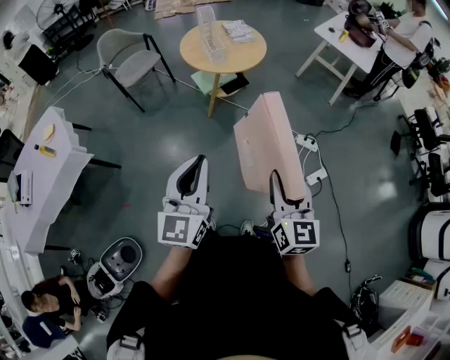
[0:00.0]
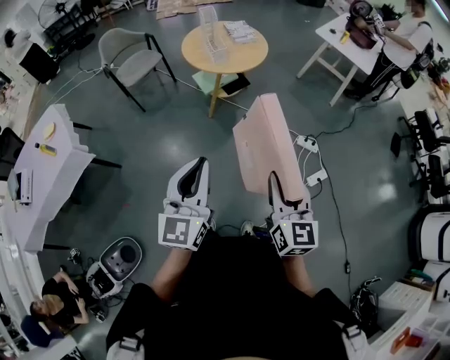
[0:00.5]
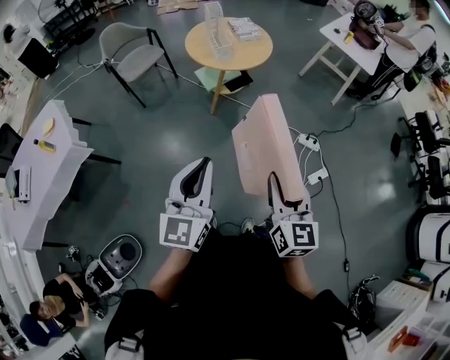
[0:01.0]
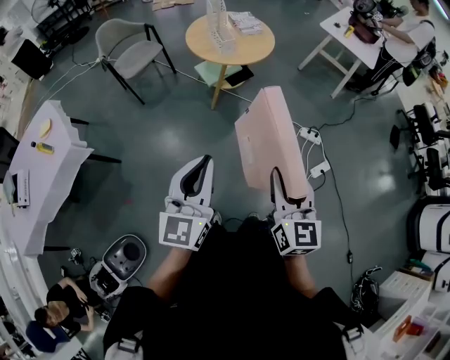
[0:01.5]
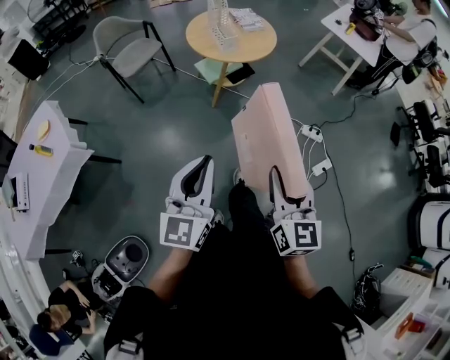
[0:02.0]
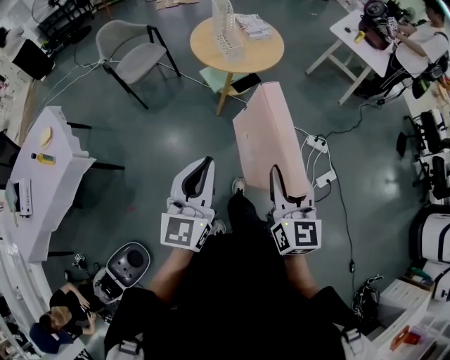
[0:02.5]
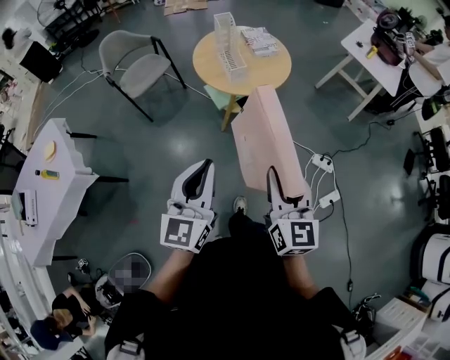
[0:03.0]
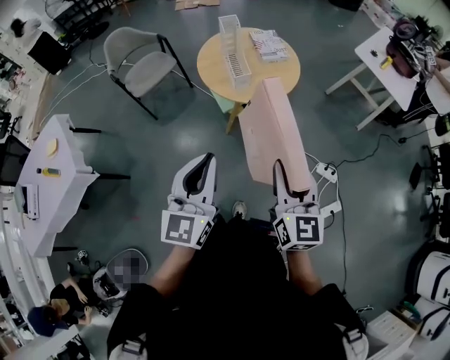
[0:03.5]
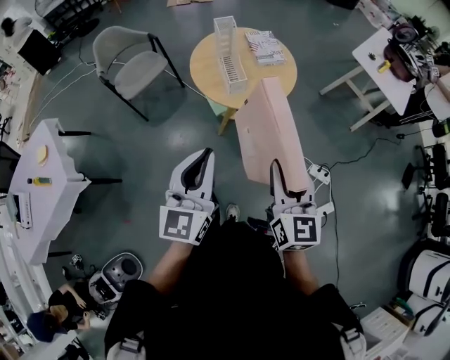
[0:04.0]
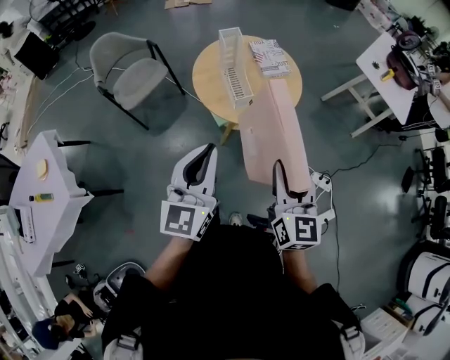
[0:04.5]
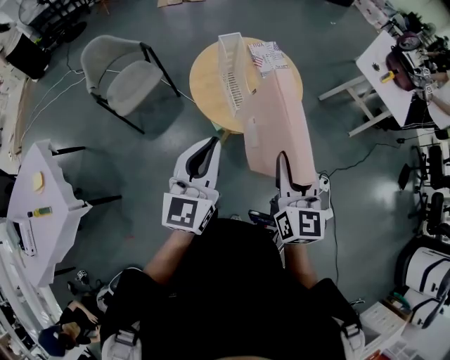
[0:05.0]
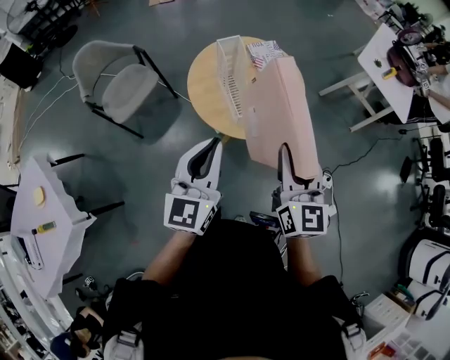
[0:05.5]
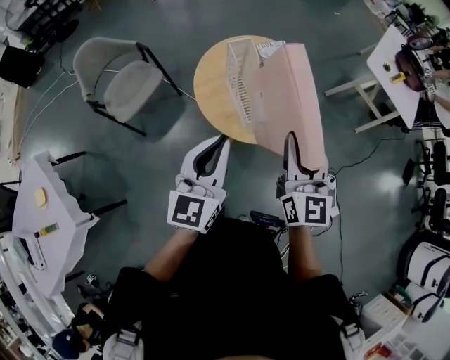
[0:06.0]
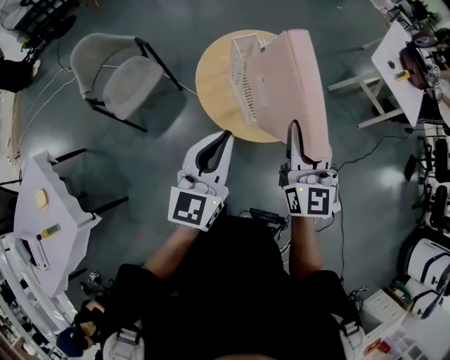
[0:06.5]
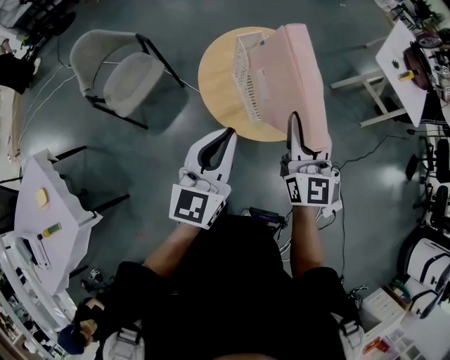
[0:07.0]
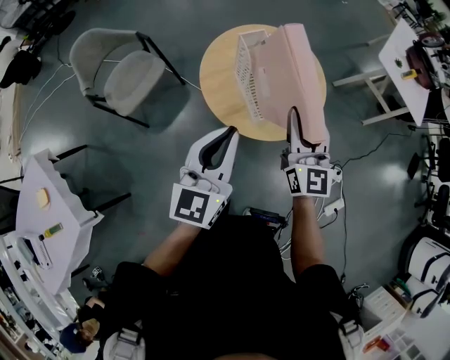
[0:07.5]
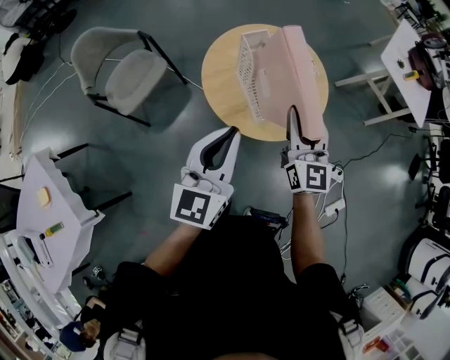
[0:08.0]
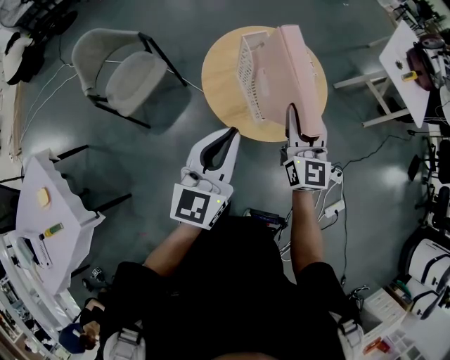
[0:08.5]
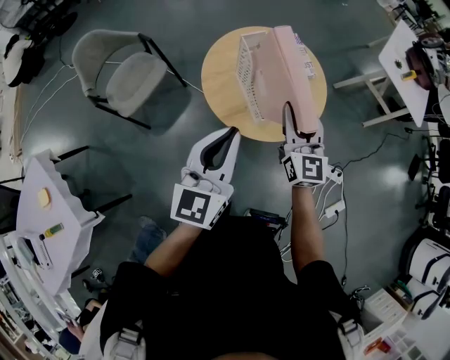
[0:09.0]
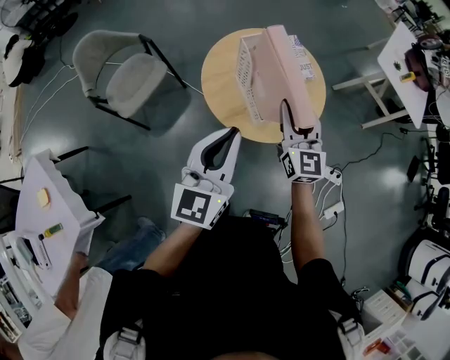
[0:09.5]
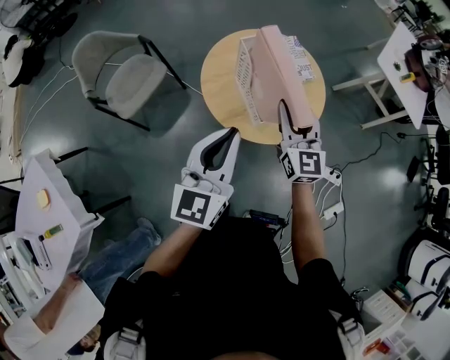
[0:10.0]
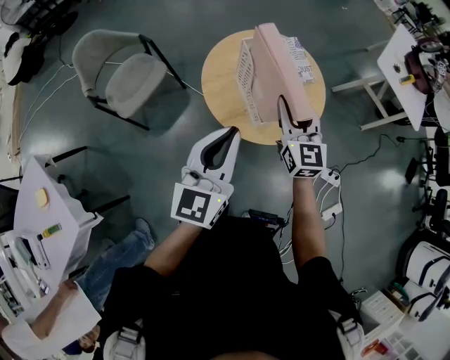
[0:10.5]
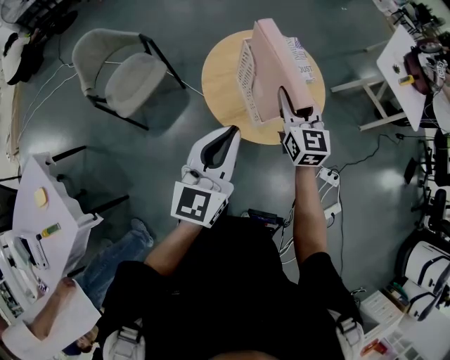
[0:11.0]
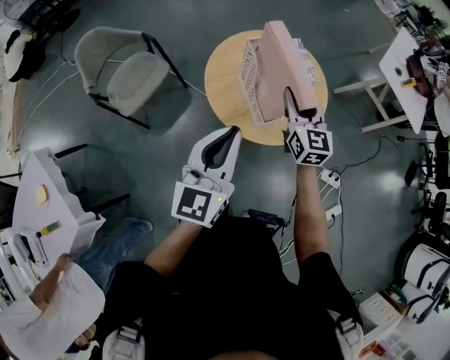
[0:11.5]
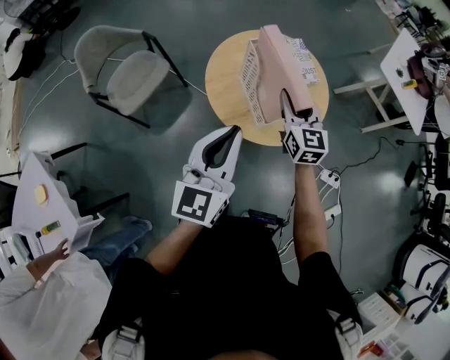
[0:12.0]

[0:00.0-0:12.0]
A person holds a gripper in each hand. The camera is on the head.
0:00.0 to 0:02.0: The two grippers go roughly 10 cm to the left.
0:02.0 to 0:04.0: Both grippers move forward, about 40 cm.
0:04.0 to 0:06.0: The grippers both shift forward by roughly 30 cm.
0:06.0 to 0:08.0: The left gripper ends up roughly 5 cm from where it was, while the right gripper moves forward and downward, roughly 10 cm.
0:08.0 to 0:10.0: The grippers stay close to where they were, moving slightly.
0:10.0 to 0:12.0: The right gripper moves forward, roughly 5 cm.

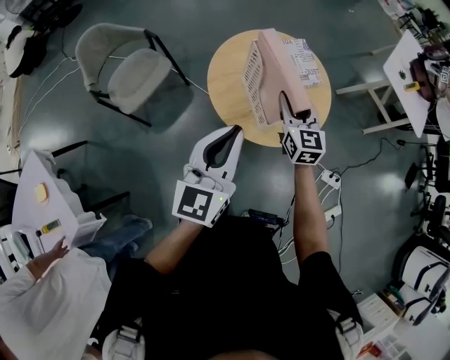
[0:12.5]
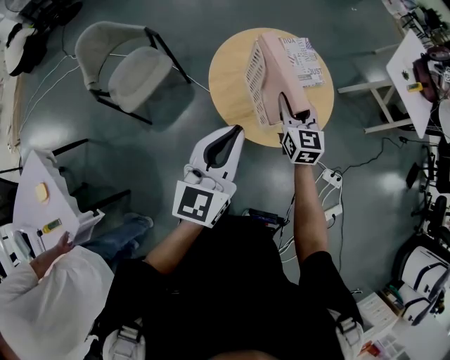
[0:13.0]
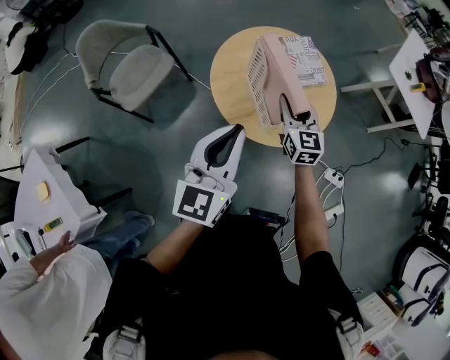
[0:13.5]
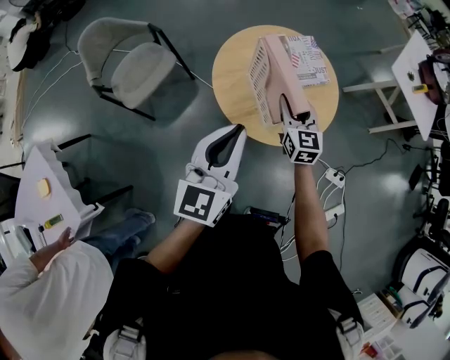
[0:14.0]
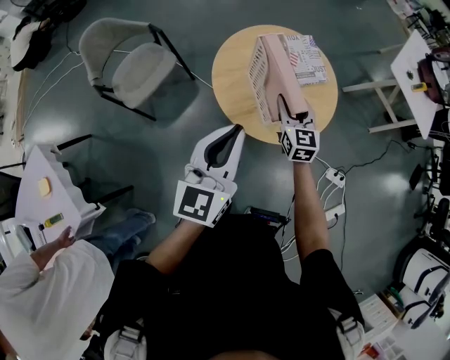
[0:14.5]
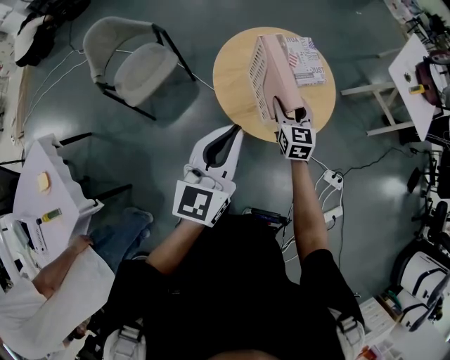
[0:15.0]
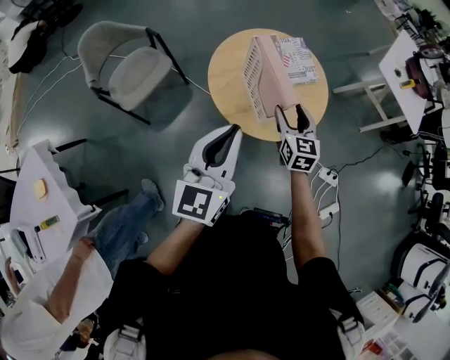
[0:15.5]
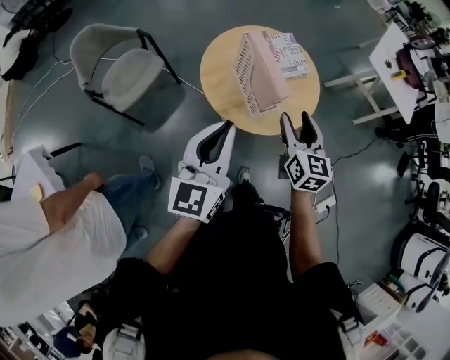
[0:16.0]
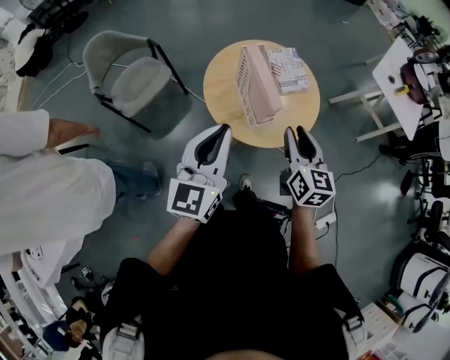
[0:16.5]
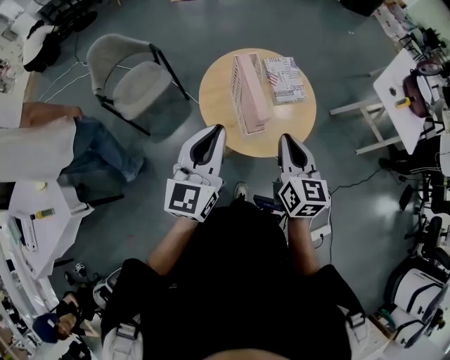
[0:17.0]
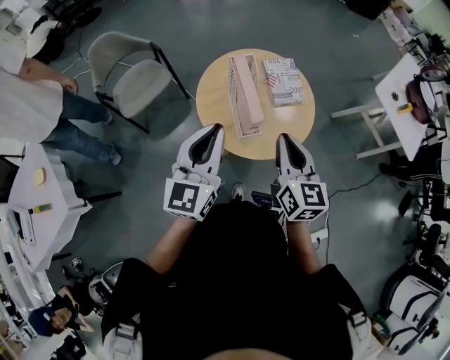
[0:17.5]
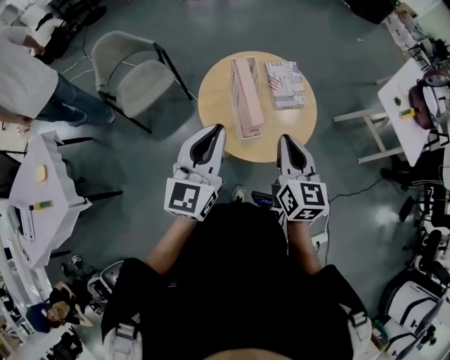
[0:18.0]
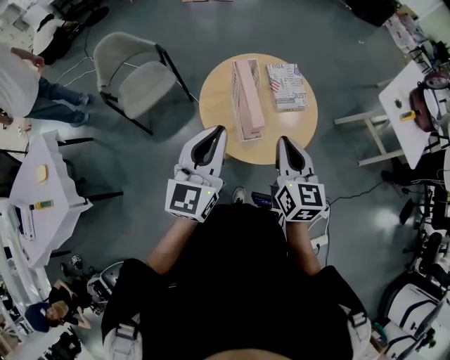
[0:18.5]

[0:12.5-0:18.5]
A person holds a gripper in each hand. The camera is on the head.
0:12.5 to 0:14.5: The right gripper travels downward by some 5 cm.
0:14.5 to 0:16.5: The right gripper travels upward, backward and to the right by about 20 cm, and opens and closes again. The left gripper changes place by roughly 5 cm.
0:16.5 to 0:18.5: The left gripper heads to the right, covering roughly 5 cm; the right gripper closes.

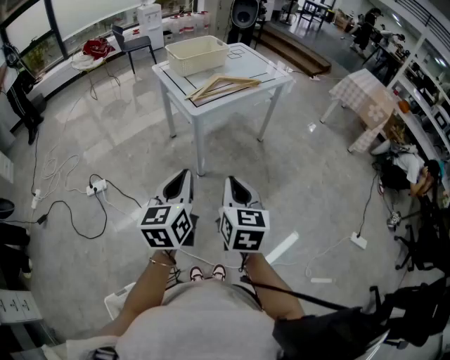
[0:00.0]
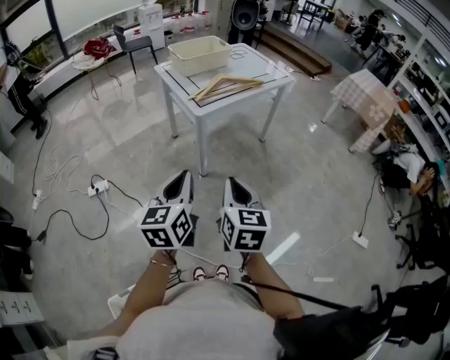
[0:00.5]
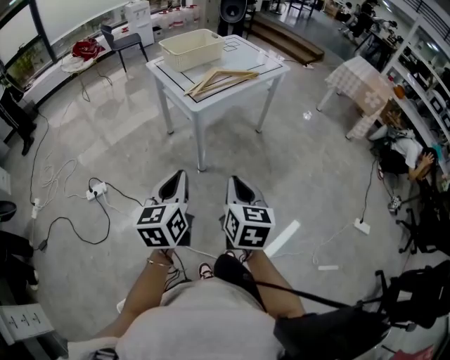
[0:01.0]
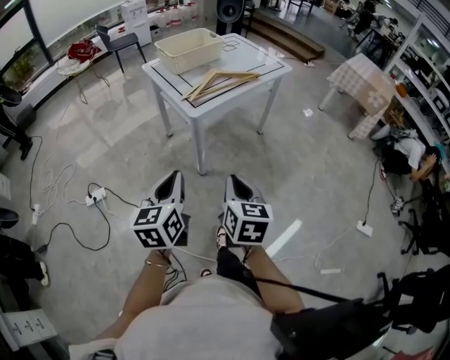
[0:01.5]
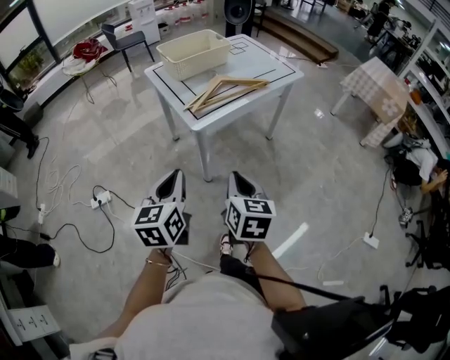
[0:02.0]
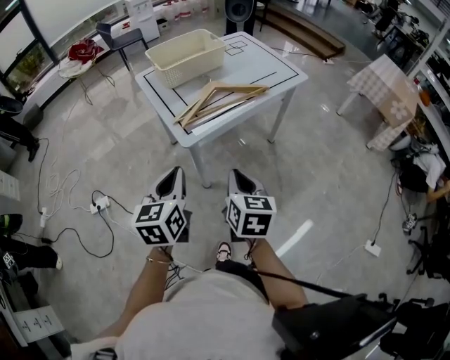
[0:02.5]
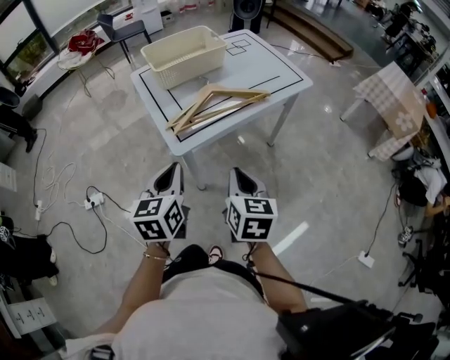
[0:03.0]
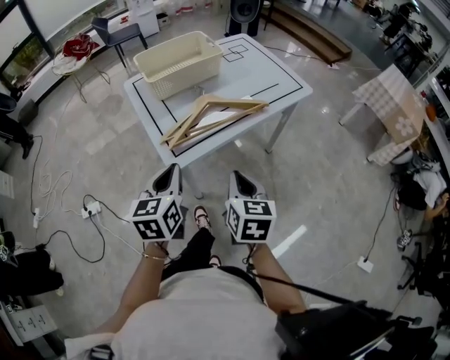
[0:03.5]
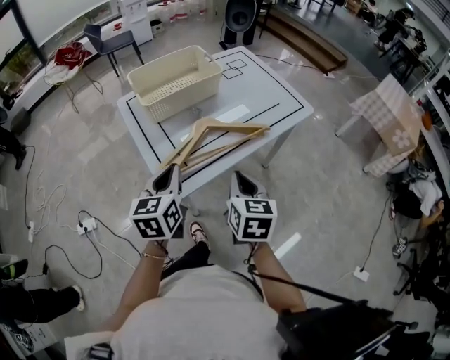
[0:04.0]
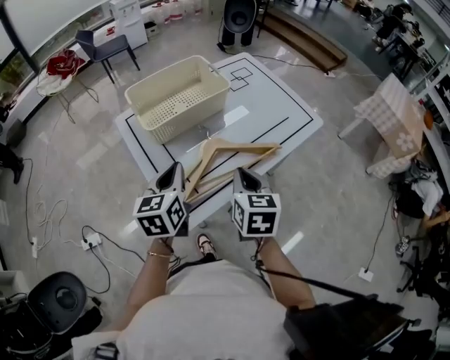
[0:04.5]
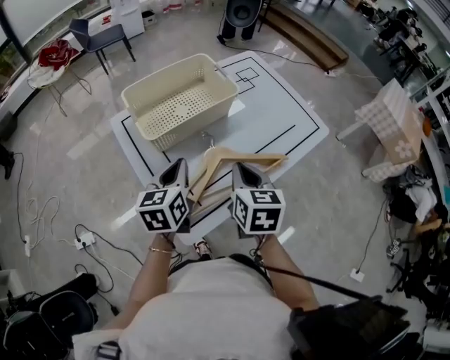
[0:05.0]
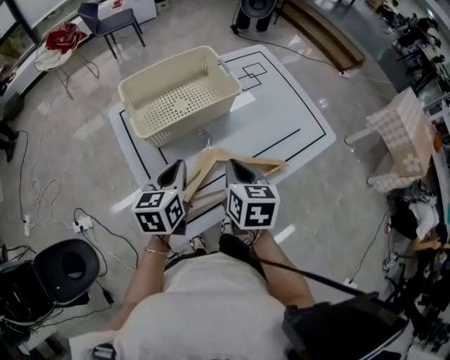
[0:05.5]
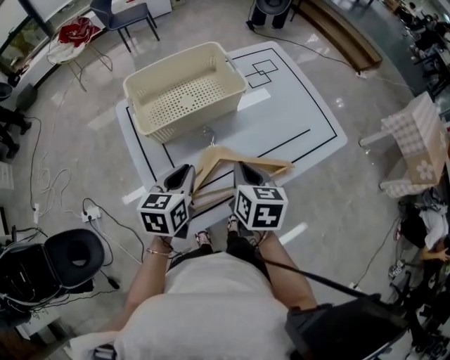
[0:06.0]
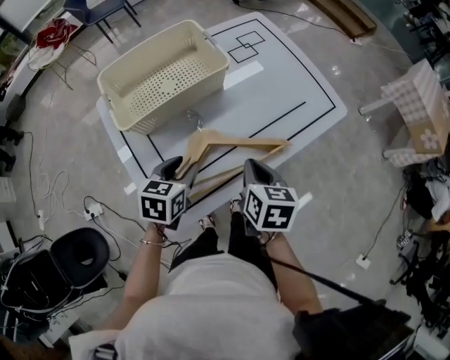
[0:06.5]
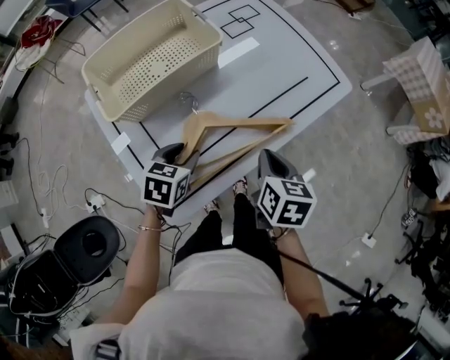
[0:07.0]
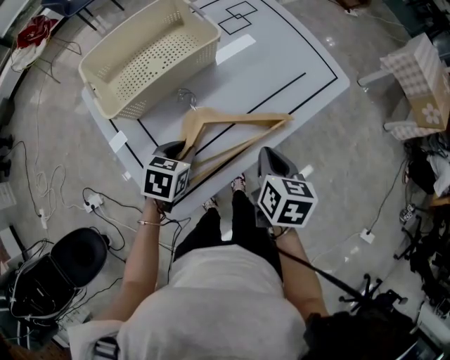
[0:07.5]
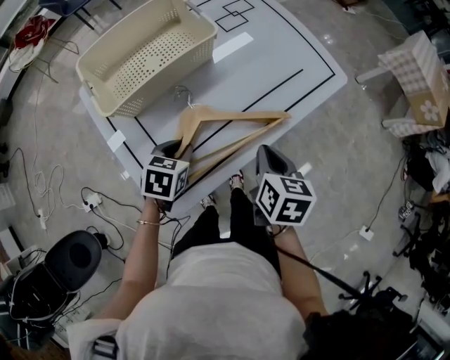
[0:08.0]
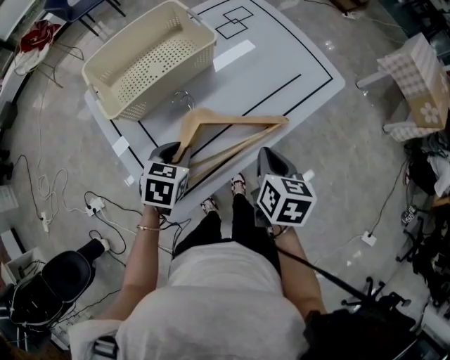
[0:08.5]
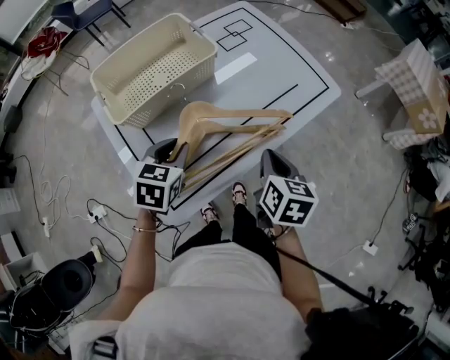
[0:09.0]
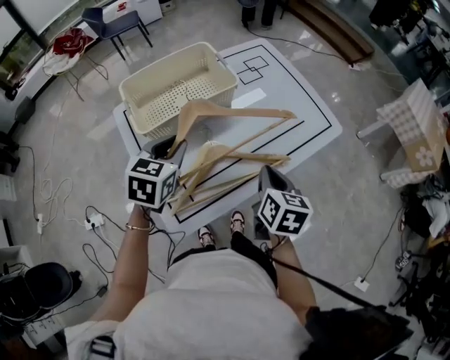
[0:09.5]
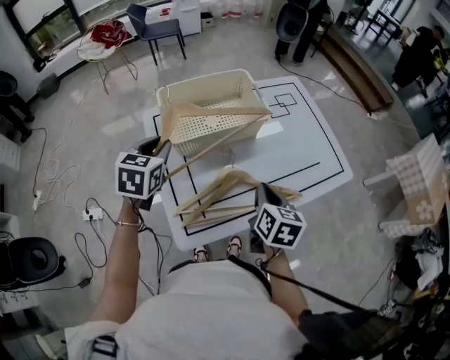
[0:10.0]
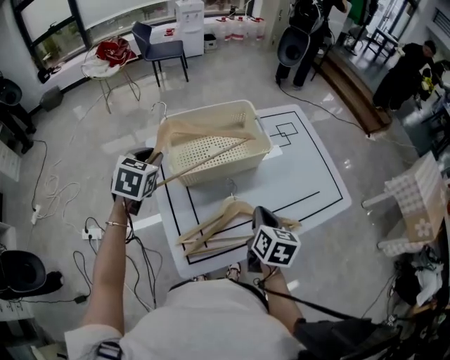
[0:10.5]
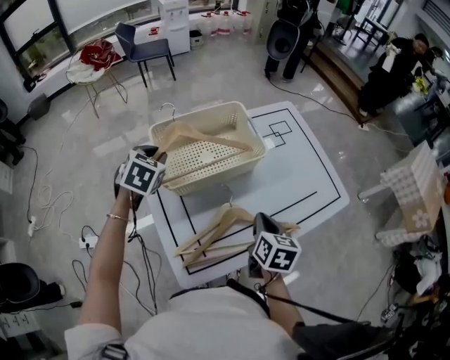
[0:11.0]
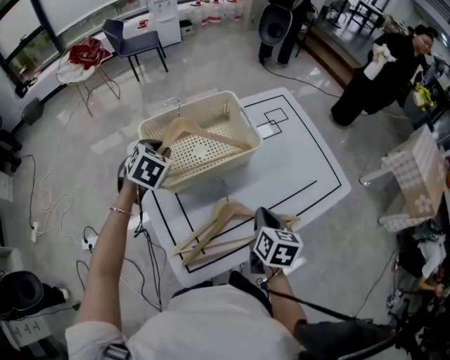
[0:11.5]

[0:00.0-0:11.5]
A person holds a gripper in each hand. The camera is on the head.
0:00.0 to 0:02.0: Both grippers travel together forward, some 20 cm.
0:02.0 to 0:04.0: Both grippers move forward, some 35 cm.
0:04.0 to 0:06.0: The two grippers go about 20 cm forward.
0:06.0 to 0:07.5: The left gripper moves downward, some 10 cm, and changes its angle by roughly 30 degrees, while the right gripper moves to the right and downward, about 10 cm.
0:07.5 to 0:09.5: The right gripper is displaced upward by roughly 5 cm. The left gripper shifts roughly 15 cm upward, and swivels some 20 degrees.
0:09.5 to 0:11.5: The left gripper is displaced forward and to the left by about 20 cm, and changes its angle by about 20 degrees; the right gripper travels forward and to the left by roughly 10 cm.
